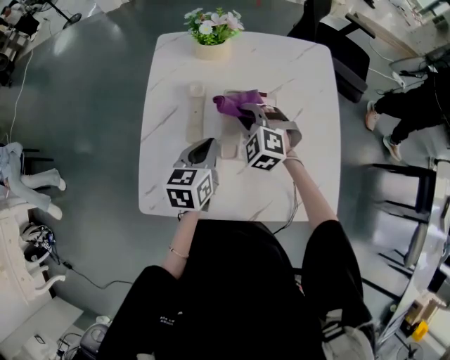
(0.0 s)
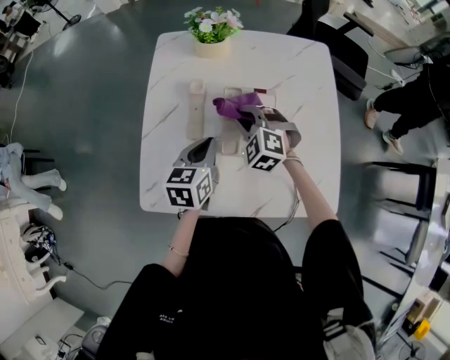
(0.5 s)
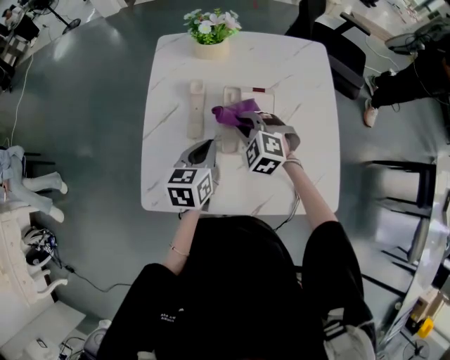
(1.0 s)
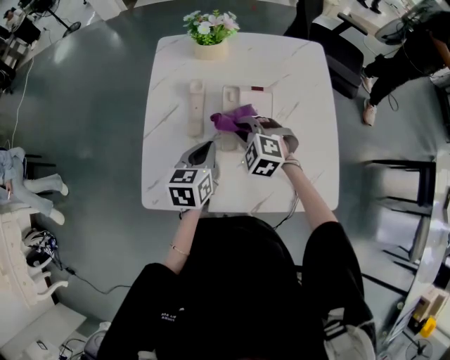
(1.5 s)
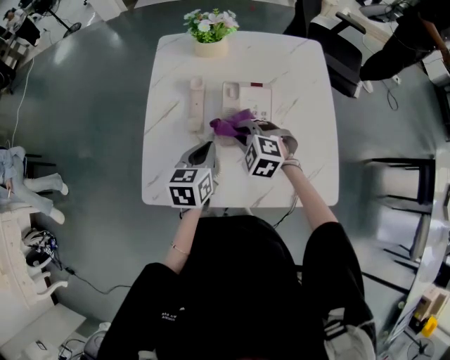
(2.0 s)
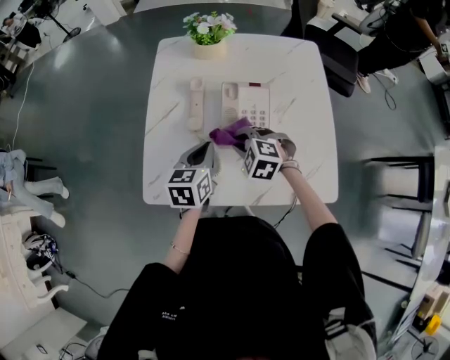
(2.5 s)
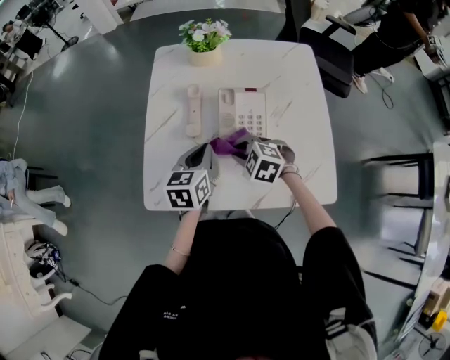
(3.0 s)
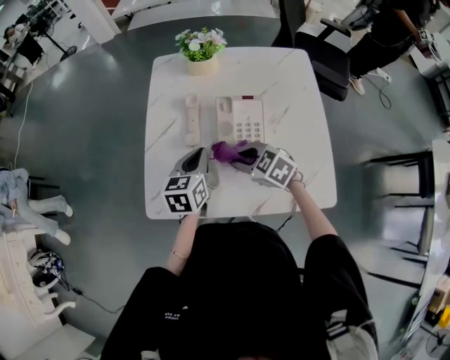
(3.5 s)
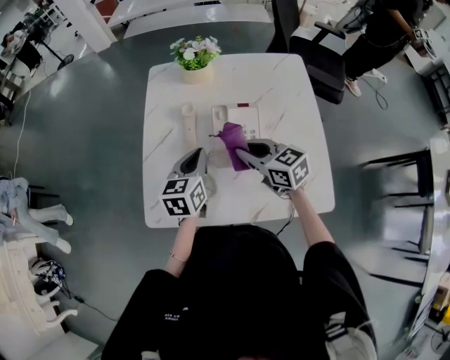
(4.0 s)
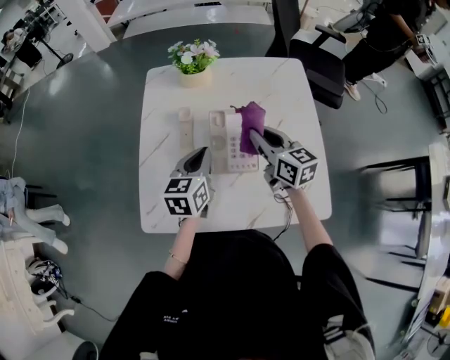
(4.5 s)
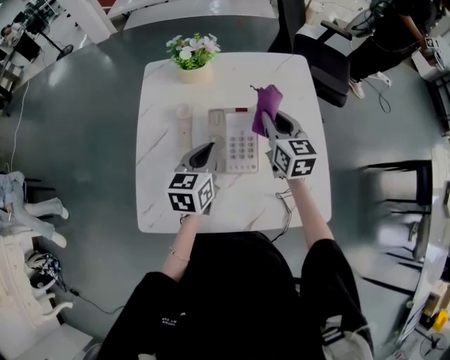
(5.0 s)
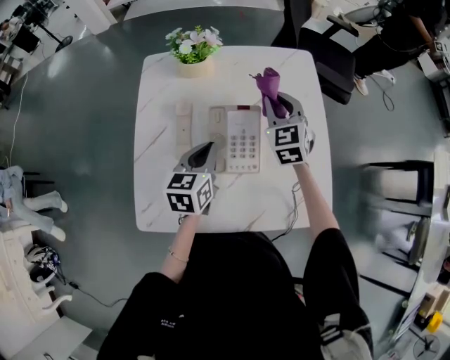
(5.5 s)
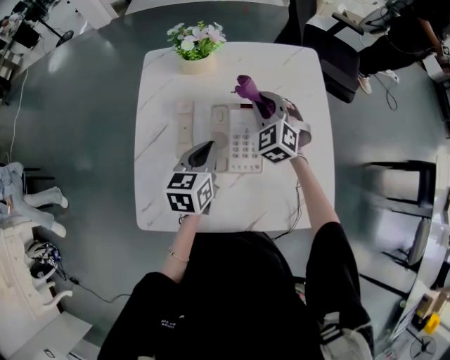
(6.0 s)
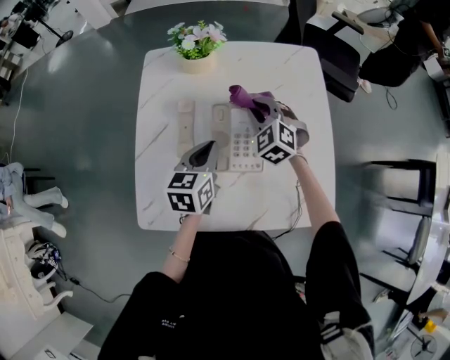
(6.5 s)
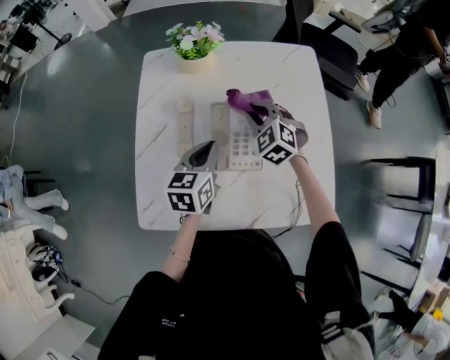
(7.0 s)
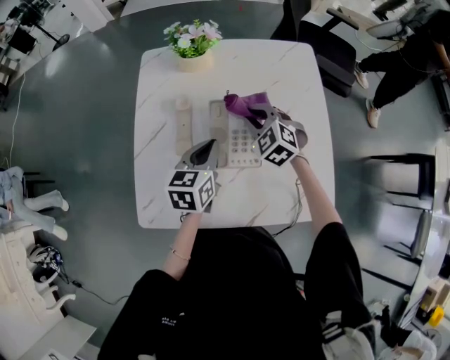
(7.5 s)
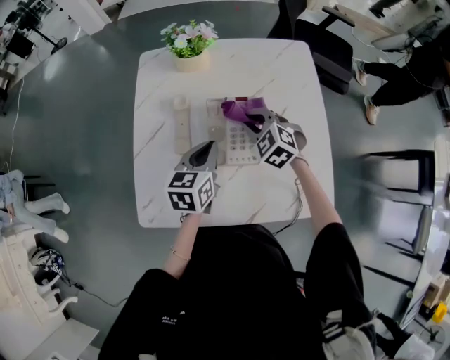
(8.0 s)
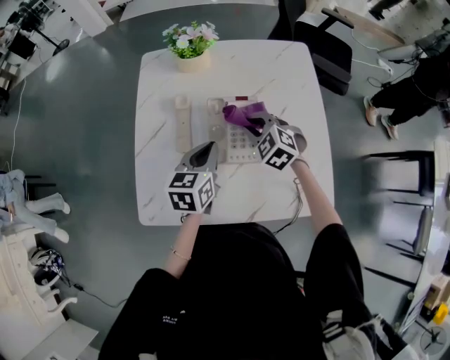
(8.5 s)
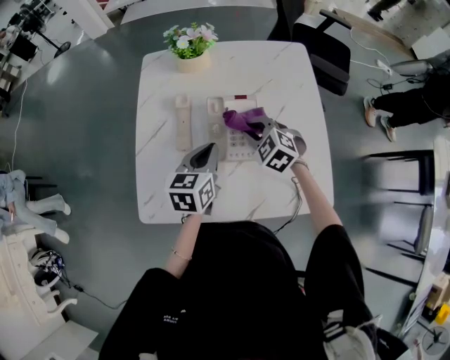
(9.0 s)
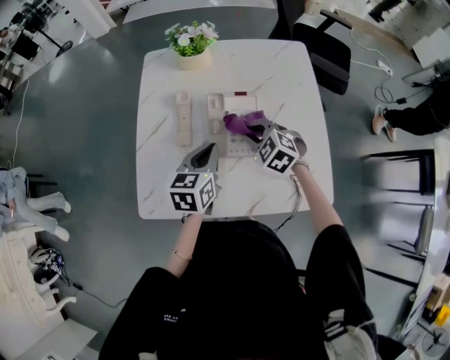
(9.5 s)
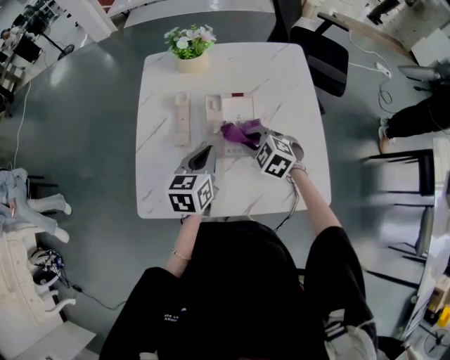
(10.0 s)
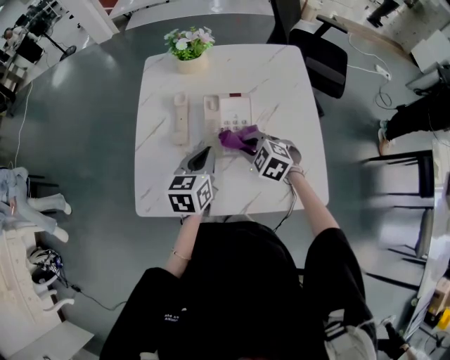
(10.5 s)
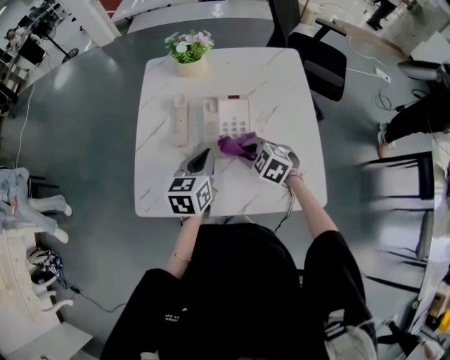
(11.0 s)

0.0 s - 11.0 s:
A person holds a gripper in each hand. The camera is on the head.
0.0 s - 2.0 s: The right gripper travels backward by roughly 10 cm.
2.0 s - 3.5 s: The right gripper travels backward by roughly 5 cm, and rotates some 30 degrees.
3.5 s - 5.5 s: The right gripper moves roughly 25 cm, and turns by some 50 degrees, while the left gripper moves some 10 cm.
5.5 s - 7.5 s: The right gripper moves downward, to the left and backward, roughly 10 cm, and swivels some 30 degrees.
7.5 s - 9.0 s: The right gripper is displaced backward by about 5 cm.
9.0 s - 11.0 s: The right gripper moves backward, some 10 cm.

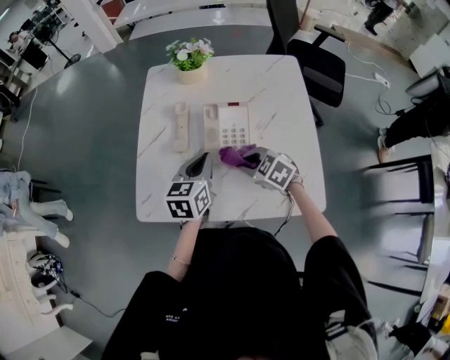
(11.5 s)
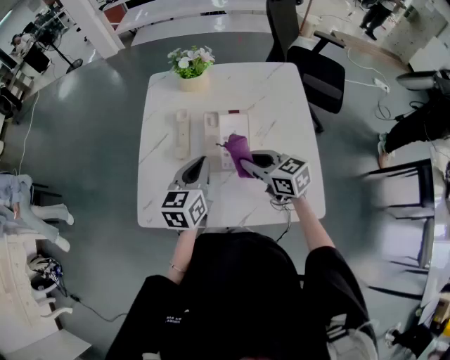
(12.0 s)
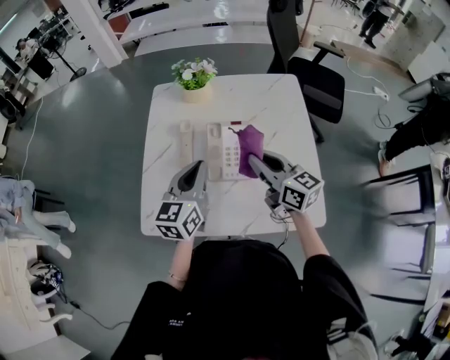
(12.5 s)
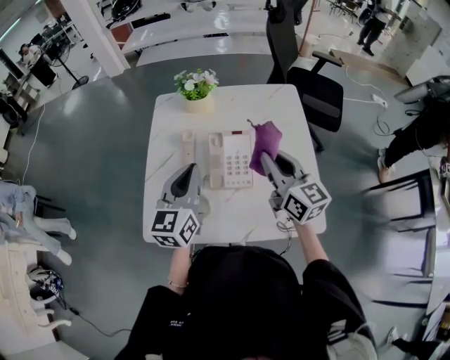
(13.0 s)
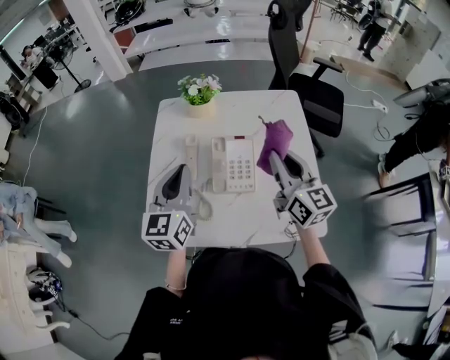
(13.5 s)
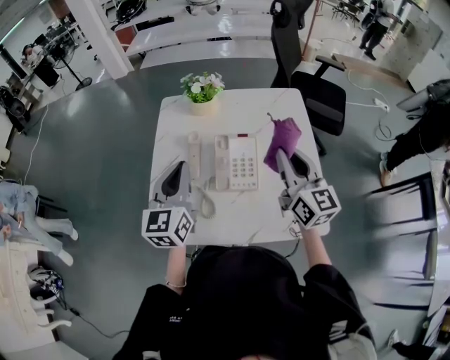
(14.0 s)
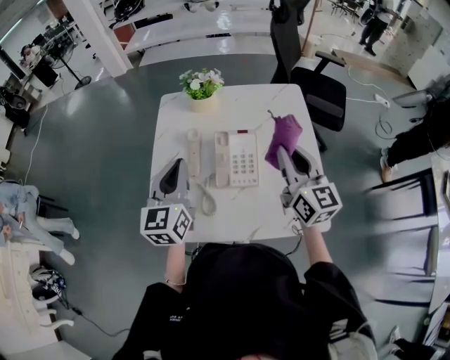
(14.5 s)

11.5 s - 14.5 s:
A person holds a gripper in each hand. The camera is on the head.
11.5 s - 13.0 s: The left gripper travels upward by roughly 10 cm, and swivels about 20 degrees, while the right gripper travels upward by approximately 20 cm, and tilts its fingers about 50 degrees upward.
13.0 s - 14.5 s: The left gripper shifts by about 5 cm.

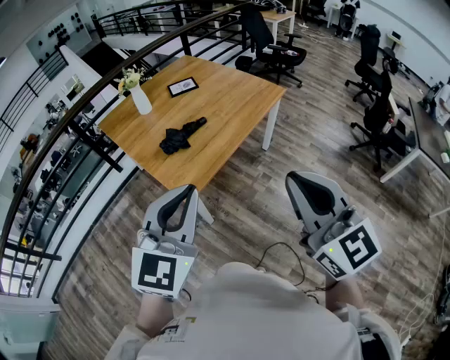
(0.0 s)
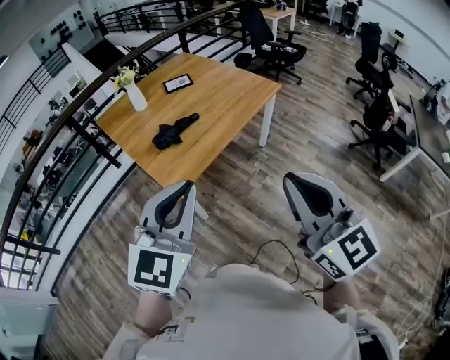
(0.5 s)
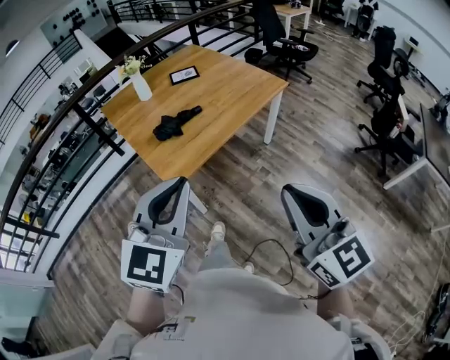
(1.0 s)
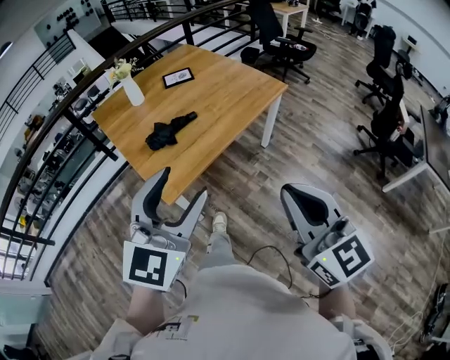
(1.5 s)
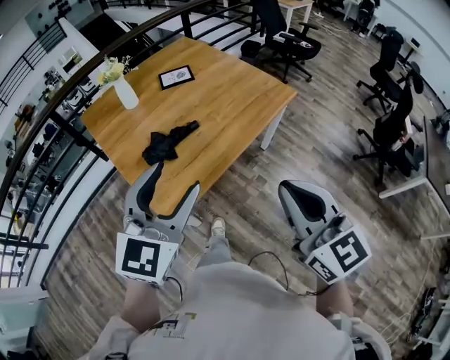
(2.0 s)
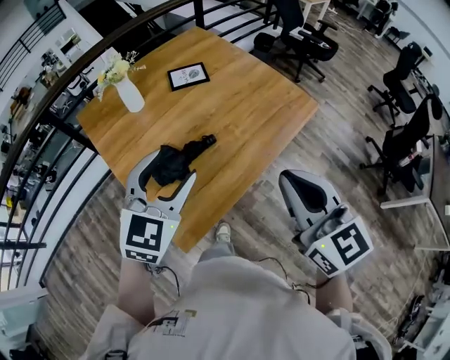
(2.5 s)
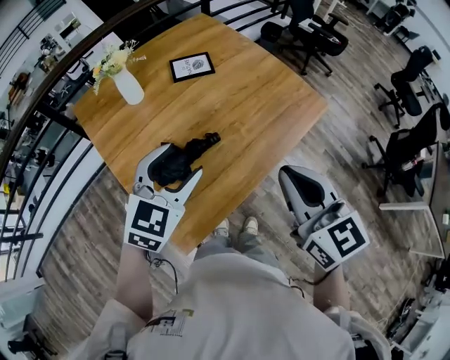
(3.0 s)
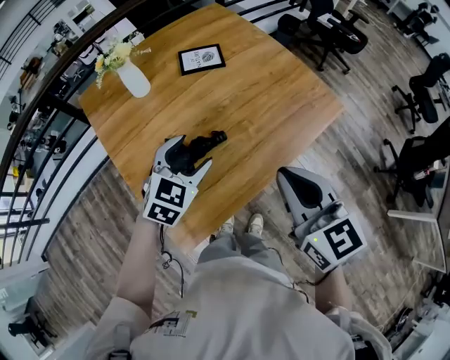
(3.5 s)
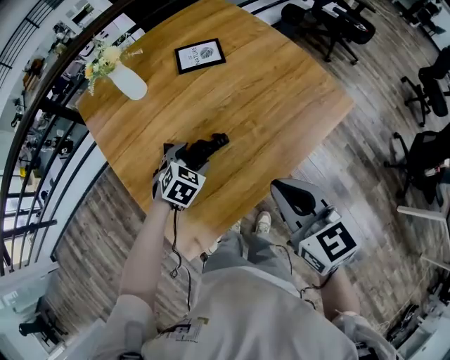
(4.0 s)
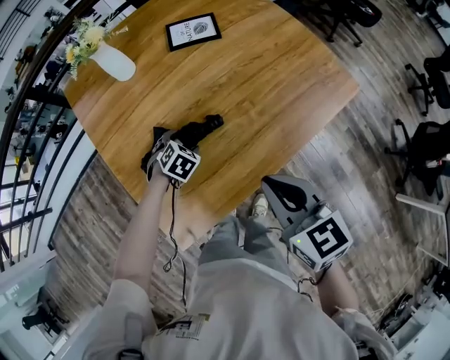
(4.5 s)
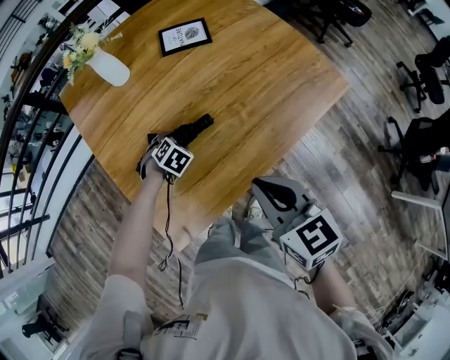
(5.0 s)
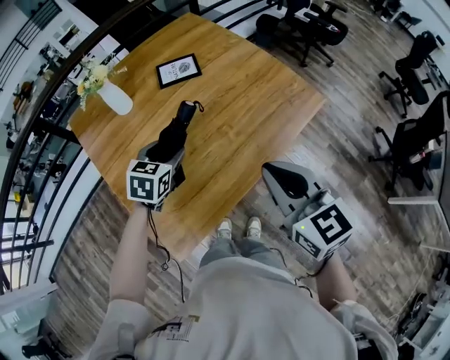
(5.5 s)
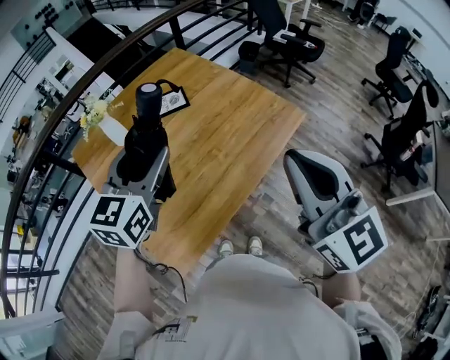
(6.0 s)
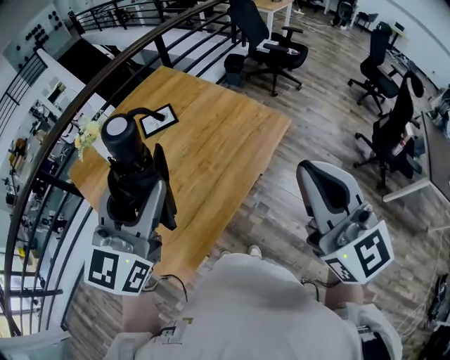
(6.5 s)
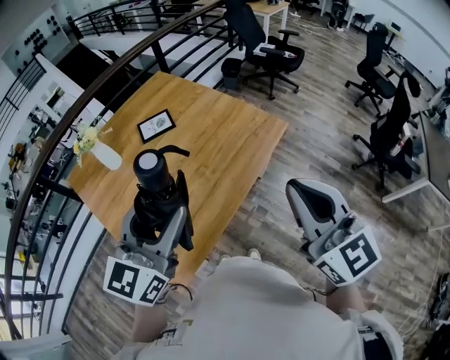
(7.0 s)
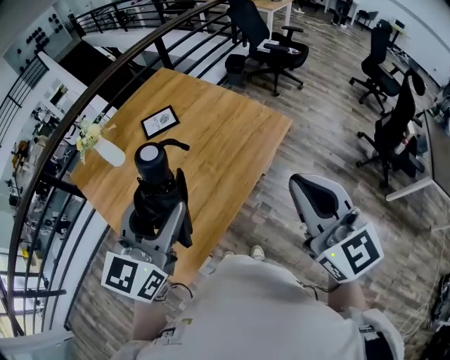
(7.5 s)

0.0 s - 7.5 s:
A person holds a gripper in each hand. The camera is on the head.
0.0 s - 2.0 s: The grippers both shift forward by some 25 cm. The left gripper opens.
2.0 s - 4.0 s: The left gripper shifts some 50 cm downward and forward, and angles its fingers downward, by approximately 50 degrees. The right gripper shifts about 35 cm forward and downward, and rotates approximately 20 degrees.
4.0 s - 5.5 s: The left gripper travels upward by roughly 15 cm, and rotates about 20 degrees. The right gripper shifts roughly 5 cm upward.
5.5 s - 7.5 s: The right gripper is displaced upward, to the right and backward by approximately 20 cm, and turns by about 20 degrees, while the left gripper heads upward and backward, covering about 30 cm, and tips its fingers upward by some 40 degrees.

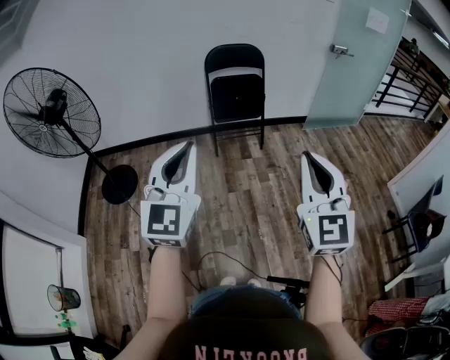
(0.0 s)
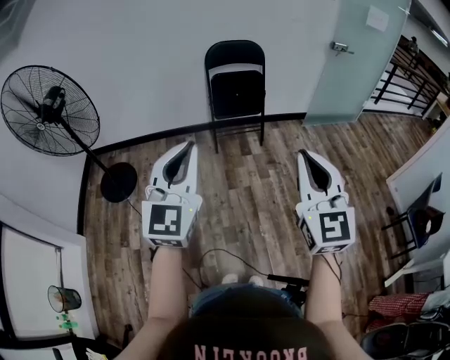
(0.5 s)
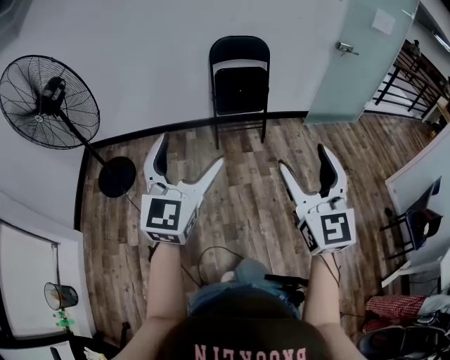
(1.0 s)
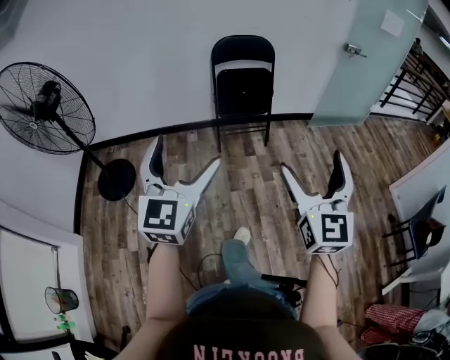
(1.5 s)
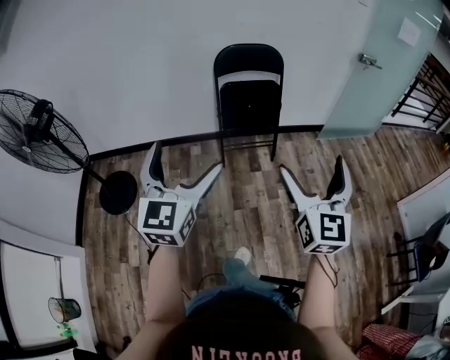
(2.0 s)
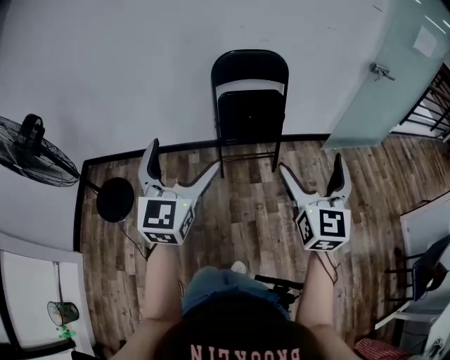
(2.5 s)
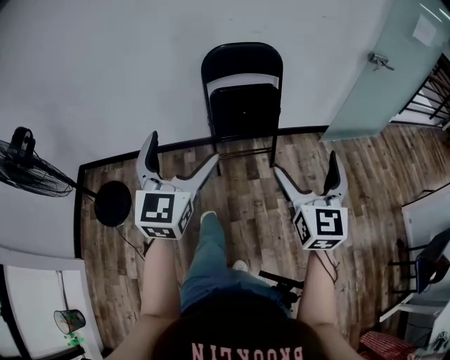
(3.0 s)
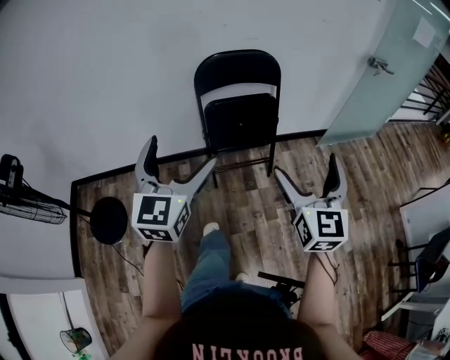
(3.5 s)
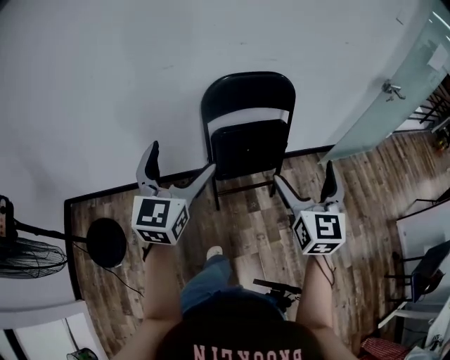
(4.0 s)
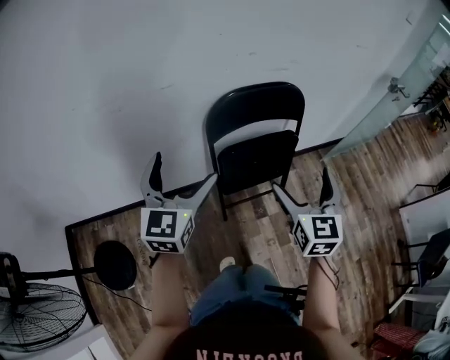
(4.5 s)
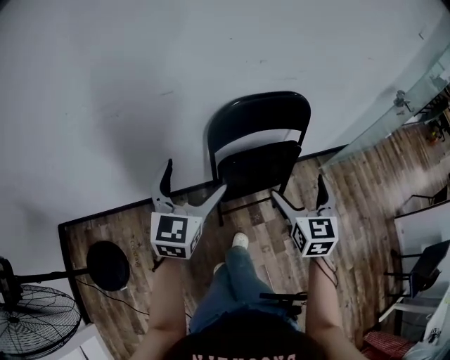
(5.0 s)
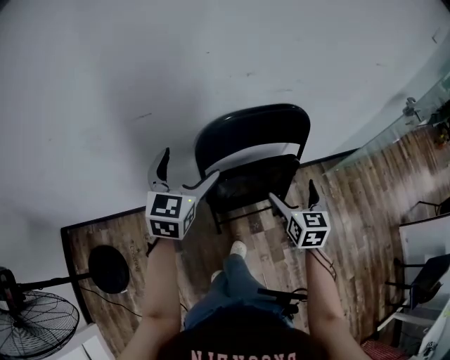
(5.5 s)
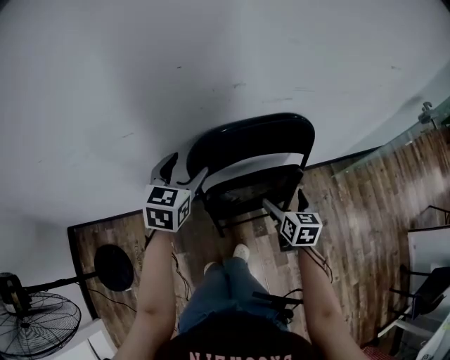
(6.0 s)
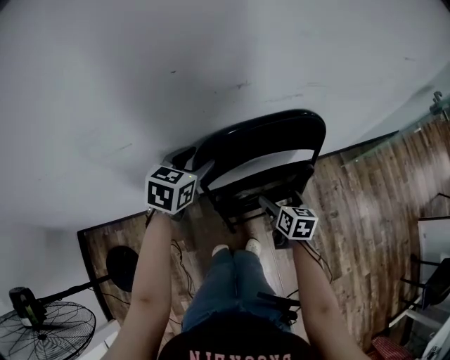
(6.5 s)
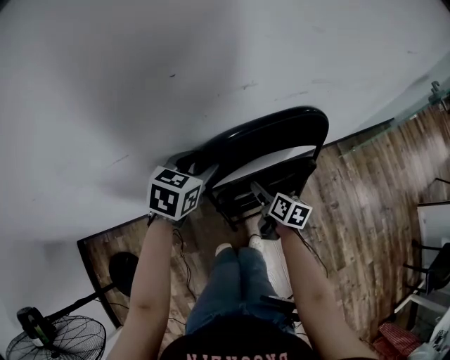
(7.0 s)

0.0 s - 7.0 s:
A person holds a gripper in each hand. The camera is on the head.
0.0 s - 2.0 s: The grippers both shift forward by roughly 25 cm. The left gripper opens its fingers. The right gripper opens its fingers.
2.0 s - 3.5 s: Both grippers travel together forward, some 30 cm.
3.5 s - 5.0 s: Both grippers travel together forward and to the left, some 35 cm.
5.0 s - 7.0 s: The right gripper travels downward and forward by roughly 30 cm, and rolls clockwise, seen from behind, by approximately 50 degrees, while the left gripper heads forward and downward, covering approximately 25 cm, tilts its fingers roughly 30 degrees downward, and closes.
